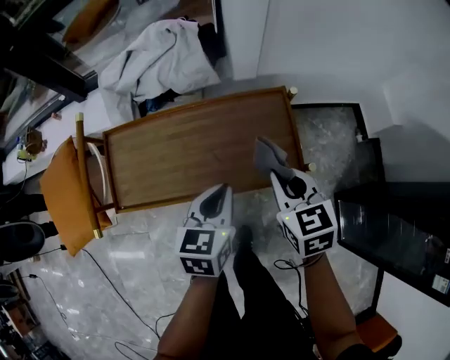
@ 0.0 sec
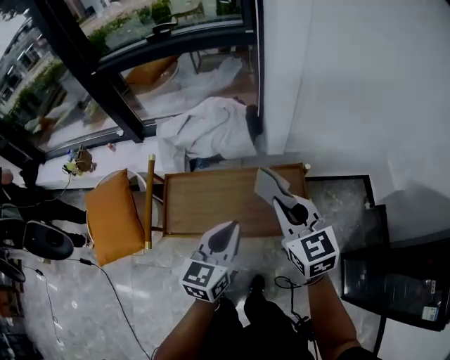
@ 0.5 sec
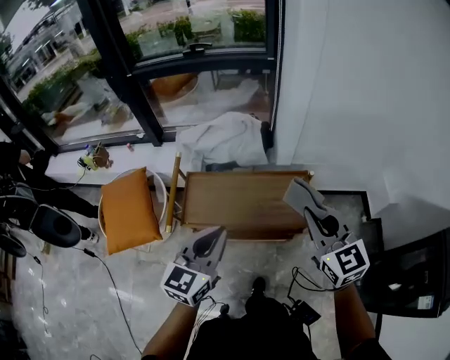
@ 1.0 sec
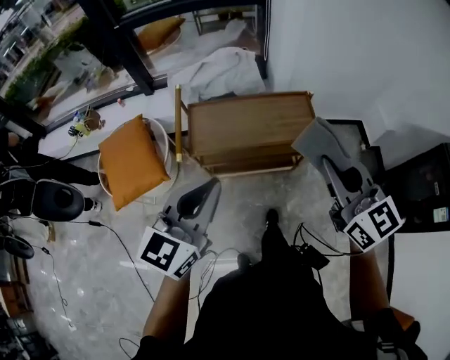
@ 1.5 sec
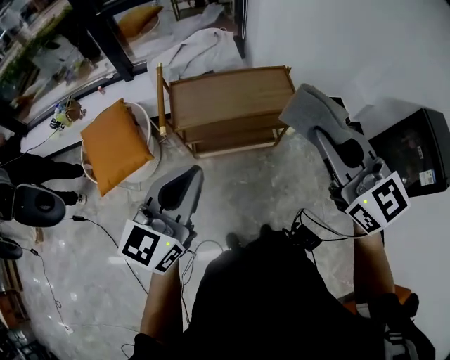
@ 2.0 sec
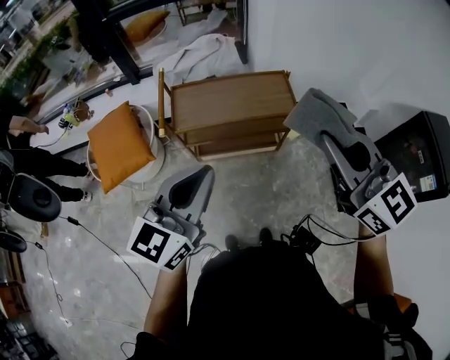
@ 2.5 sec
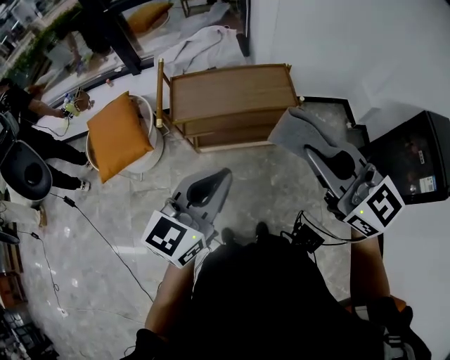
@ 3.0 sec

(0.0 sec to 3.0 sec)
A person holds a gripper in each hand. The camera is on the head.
0.0 sec - 1.5 sec: The left gripper is displaced upward, backward and to the left by some 50 cm, and changes its angle by roughly 30 degrees. The right gripper is displaced upward and backward by roughly 40 cm, and angles its fingers upward, by approximately 30 degrees.
1.5 sec - 3.0 sec: The right gripper heads backward, covering roughly 15 cm; the left gripper goes some 15 cm backward and to the right.

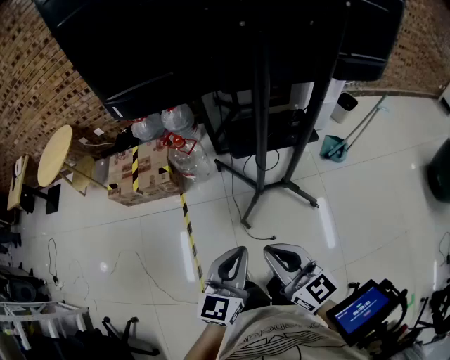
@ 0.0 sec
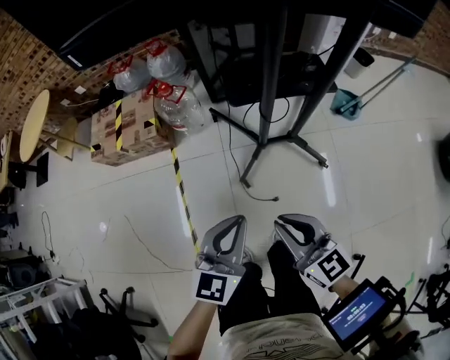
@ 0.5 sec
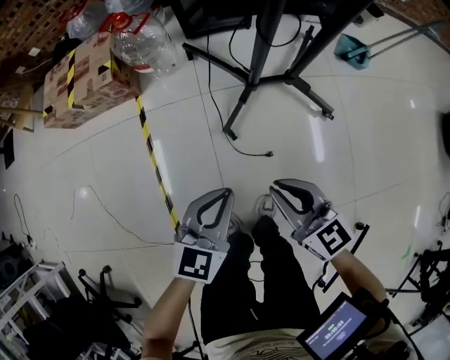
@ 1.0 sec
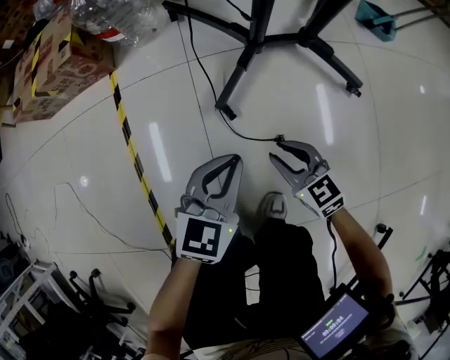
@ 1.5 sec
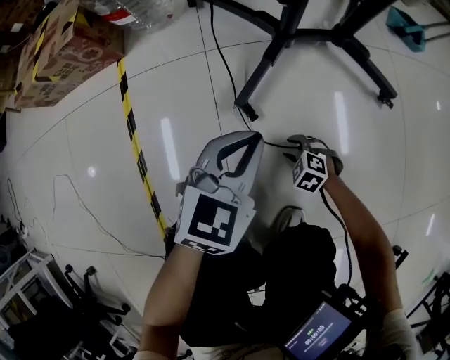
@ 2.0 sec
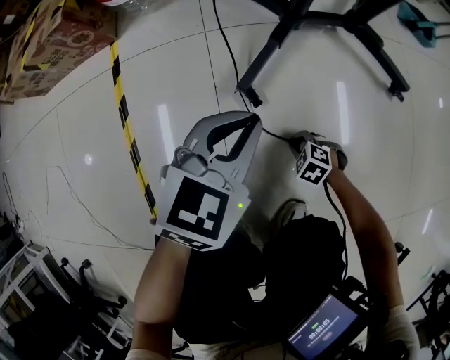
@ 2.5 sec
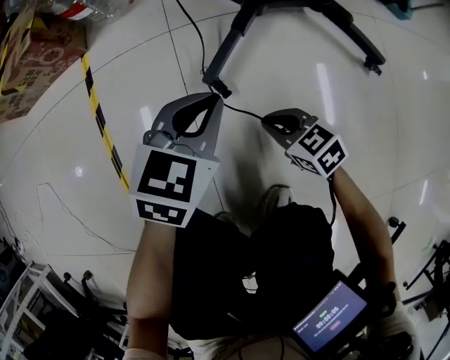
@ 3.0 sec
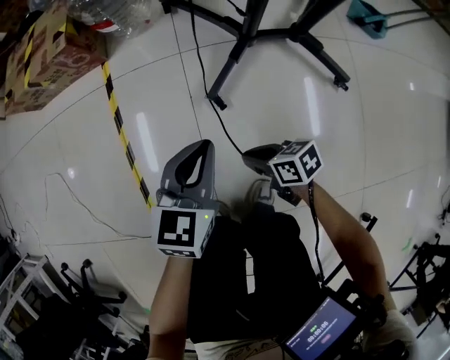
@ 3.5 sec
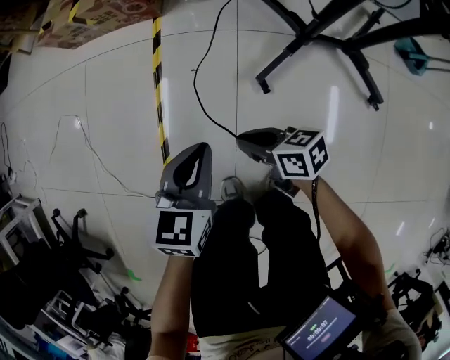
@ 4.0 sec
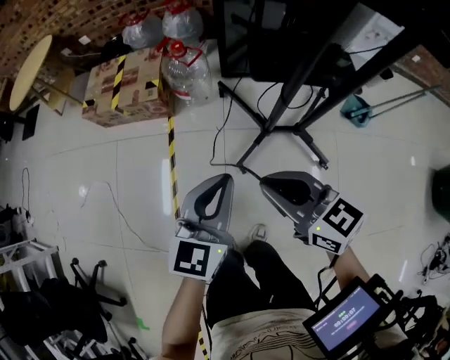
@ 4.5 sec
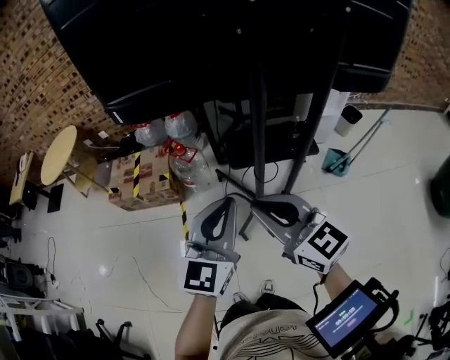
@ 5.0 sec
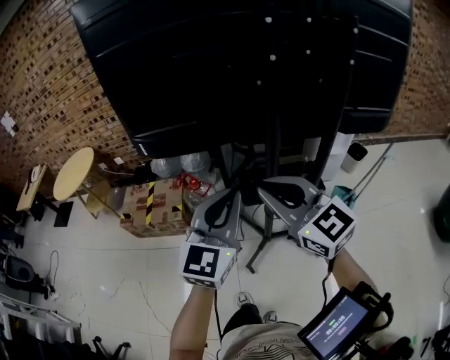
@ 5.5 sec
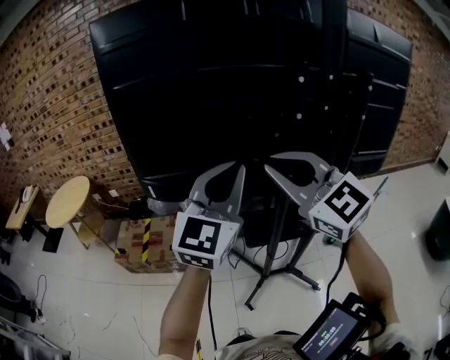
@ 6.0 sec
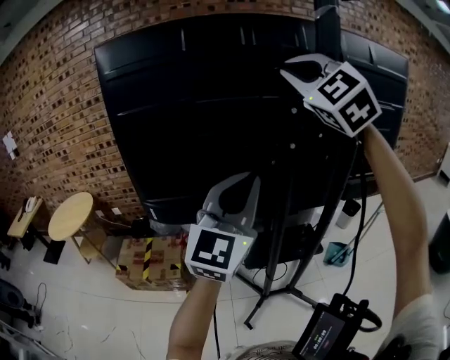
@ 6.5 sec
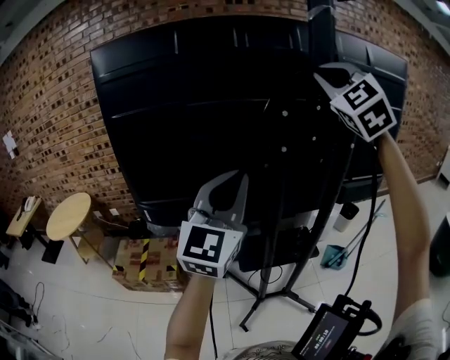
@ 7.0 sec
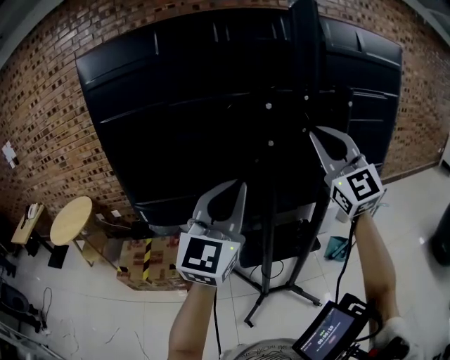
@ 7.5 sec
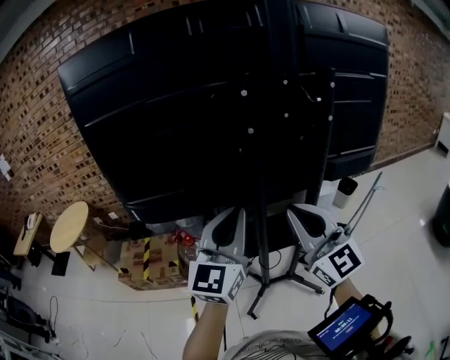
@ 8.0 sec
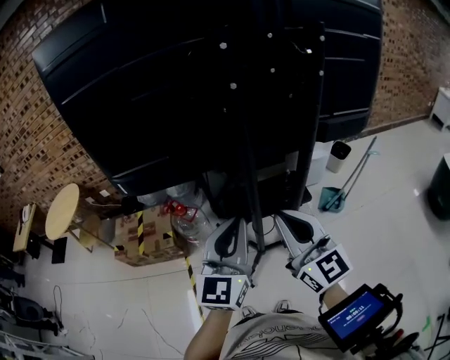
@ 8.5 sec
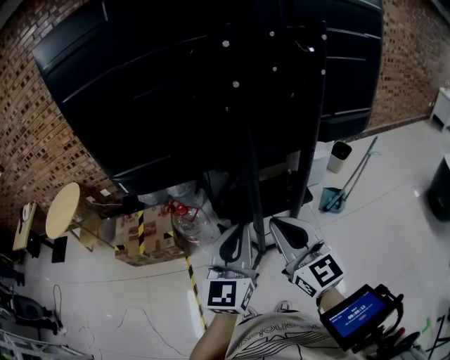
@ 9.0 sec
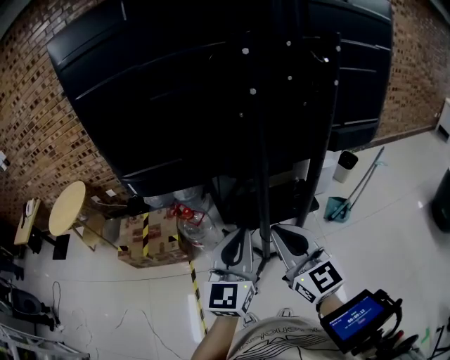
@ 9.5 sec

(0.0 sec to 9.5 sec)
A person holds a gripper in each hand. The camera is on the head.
0.0 sec - 2.0 sec: The two grippers go some 80 cm downward. The right gripper angles its fingers downward, by approximately 60 degrees, and opens its fingers. The left gripper rotates some 30 degrees.
2.0 sec - 4.0 sec: The right gripper travels upward by approximately 35 cm, angles its fingers upward, by roughly 40 degrees, and closes. The left gripper ends up about 25 cm from where it was, and changes its angle by some 40 degrees.
4.0 sec - 5.5 sec: Both grippers travel together upward, about 80 cm. The left gripper tilts its fingers some 40 degrees upward. Meanwhile the right gripper turns by approximately 80 degrees.
5.5 sec - 7.5 sec: The right gripper is displaced upward, forward and to the right by some 30 cm, and rotates some 40 degrees. The left gripper shifts about 15 cm upward and forward.
7.5 sec - 9.5 sec: The left gripper is displaced downward by about 20 cm, and turns by roughly 20 degrees. Meanwhile the right gripper shifts approximately 30 cm downward and backward, and turns by about 30 degrees.

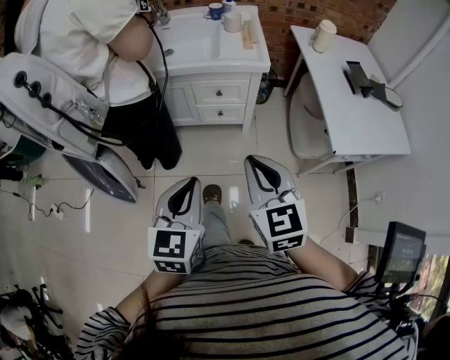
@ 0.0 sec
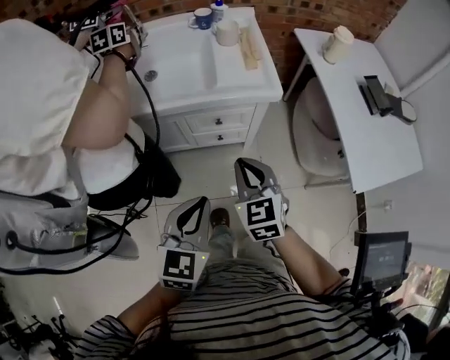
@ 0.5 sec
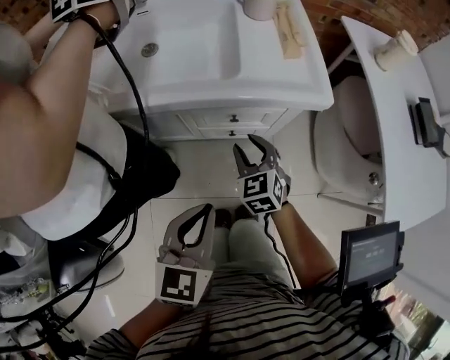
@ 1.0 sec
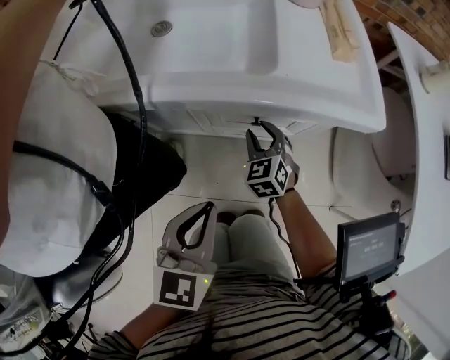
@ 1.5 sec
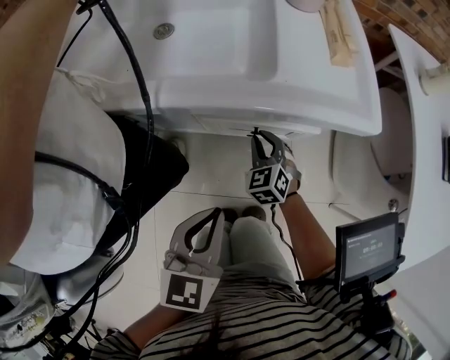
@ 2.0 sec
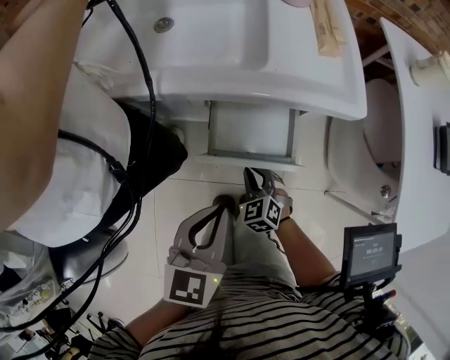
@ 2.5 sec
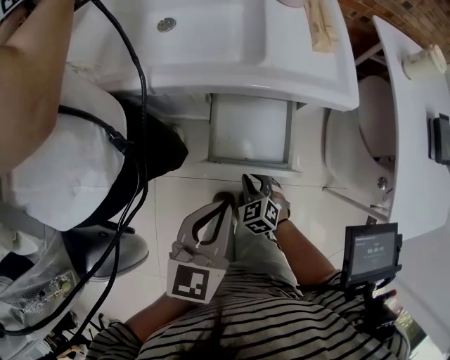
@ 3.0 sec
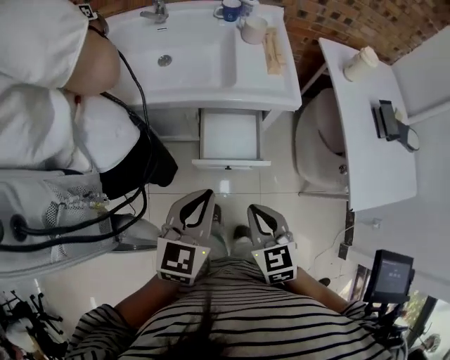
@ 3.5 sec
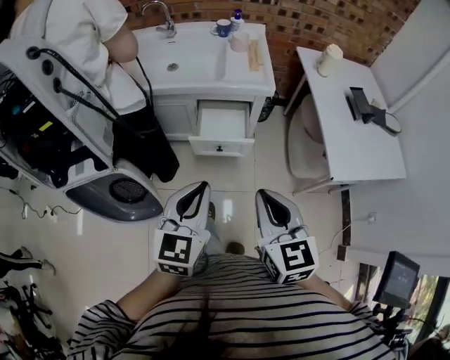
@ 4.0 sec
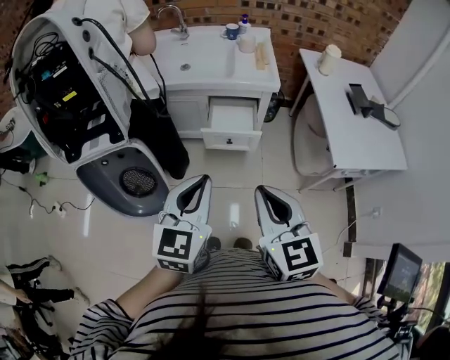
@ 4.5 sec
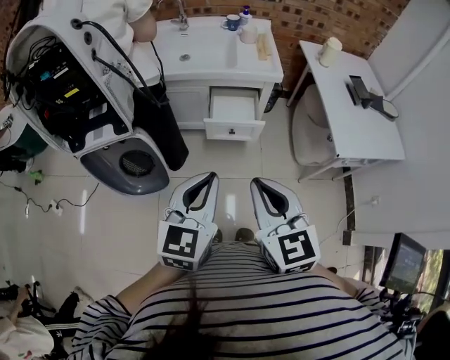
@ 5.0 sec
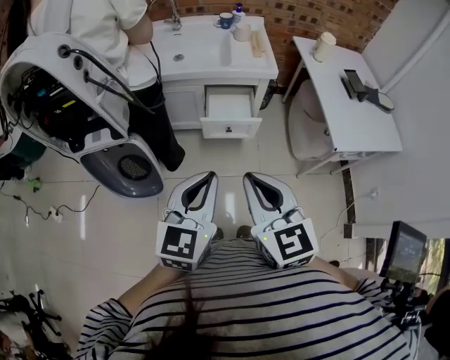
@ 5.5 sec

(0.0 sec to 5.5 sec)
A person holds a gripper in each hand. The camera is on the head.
0.0 sec - 2.0 sec: The right gripper travels downward and forward by roughly 60 cm, rotates approximately 30 degrees, and opens, then closes again. Meanwhile the left gripper moves forward and downward, about 35 cm.
2.0 sec - 3.5 sec: The right gripper goes some 40 cm backward and upward, and swivels about 20 degrees, while the left gripper moves upward and backward, roughly 20 cm.
3.5 sec - 5.5 sec: The grippers both shift backward and upward by roughly 30 cm. The right gripper swivels roughly 20 degrees.

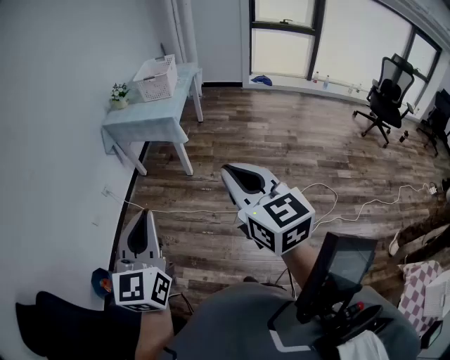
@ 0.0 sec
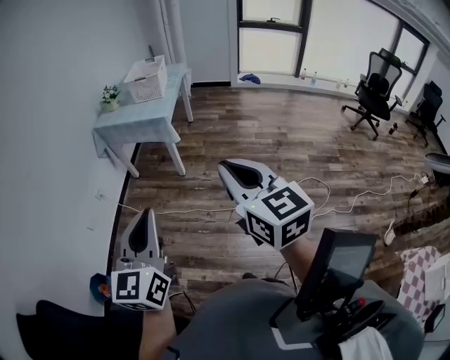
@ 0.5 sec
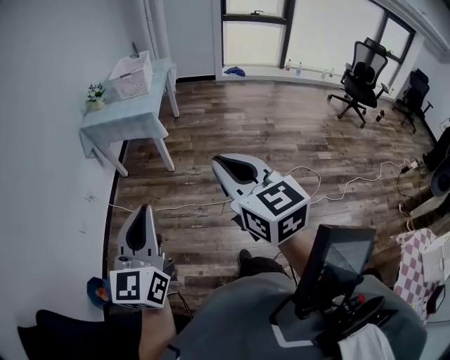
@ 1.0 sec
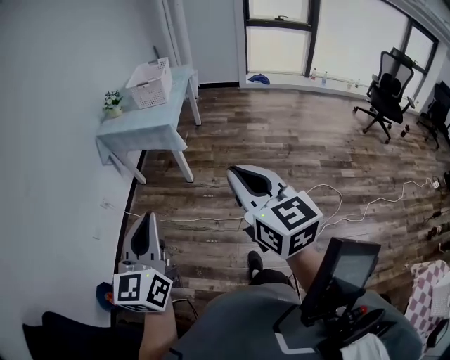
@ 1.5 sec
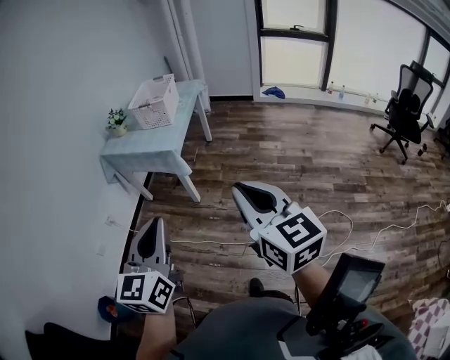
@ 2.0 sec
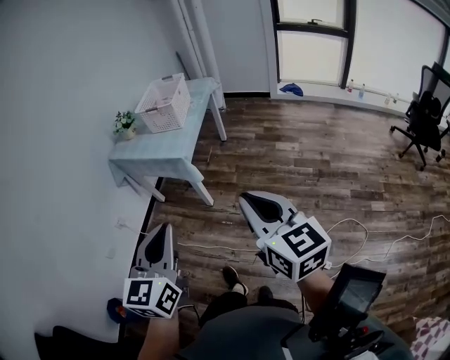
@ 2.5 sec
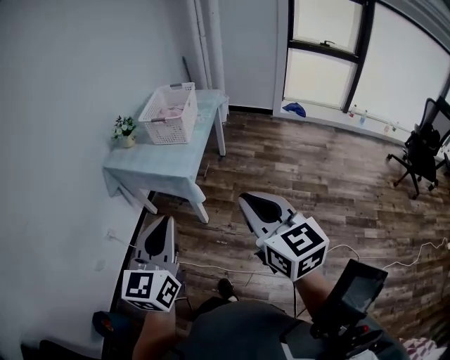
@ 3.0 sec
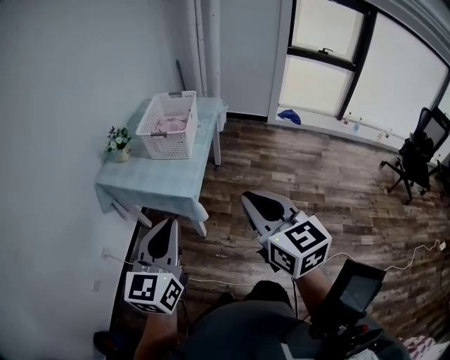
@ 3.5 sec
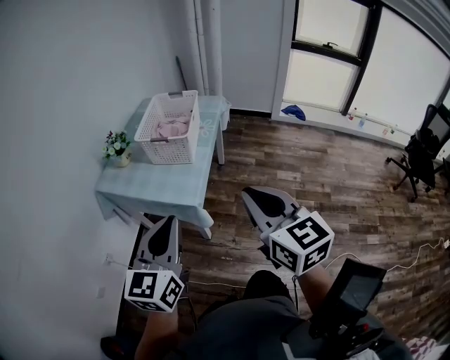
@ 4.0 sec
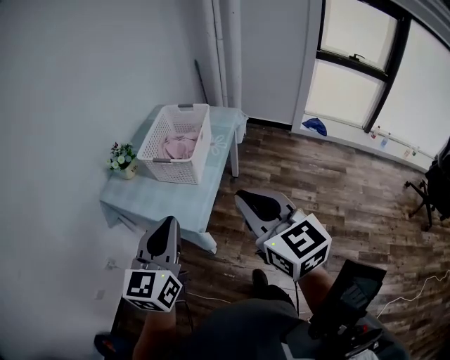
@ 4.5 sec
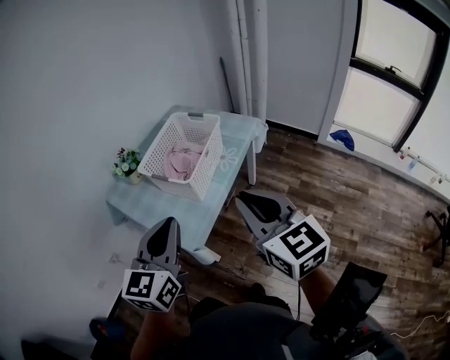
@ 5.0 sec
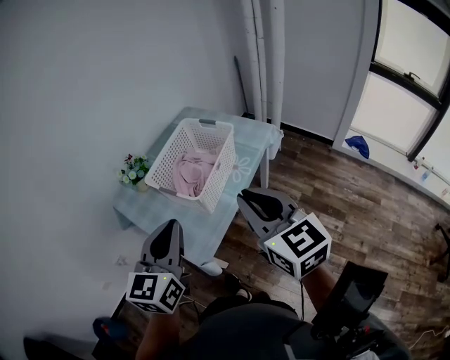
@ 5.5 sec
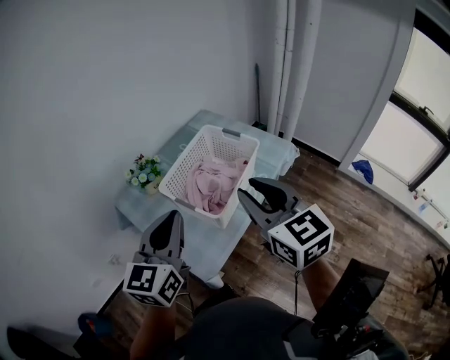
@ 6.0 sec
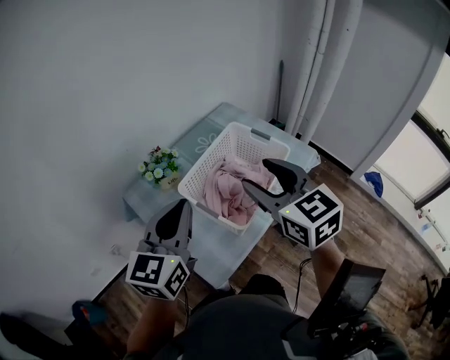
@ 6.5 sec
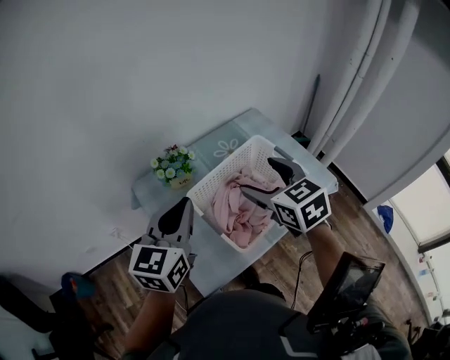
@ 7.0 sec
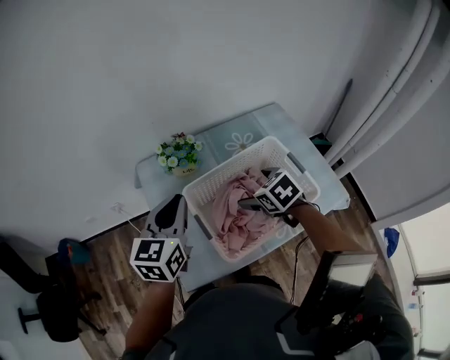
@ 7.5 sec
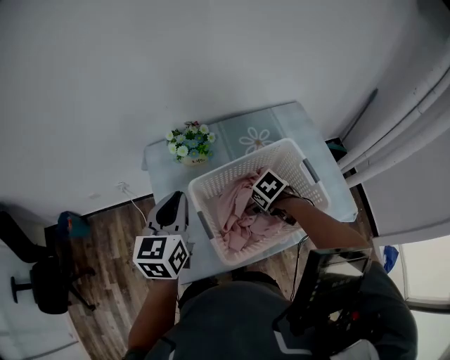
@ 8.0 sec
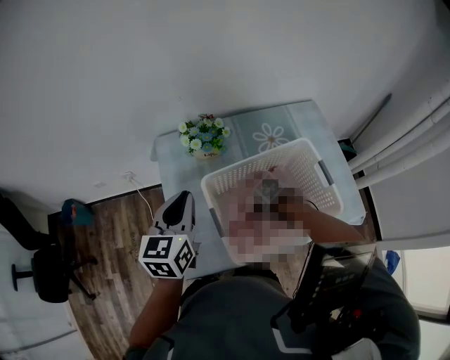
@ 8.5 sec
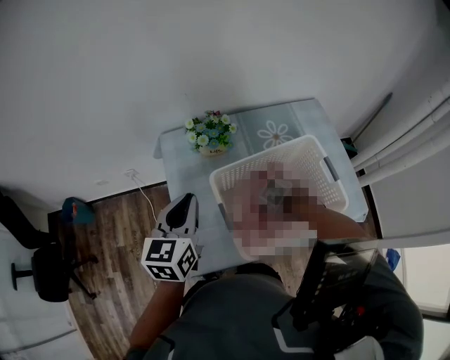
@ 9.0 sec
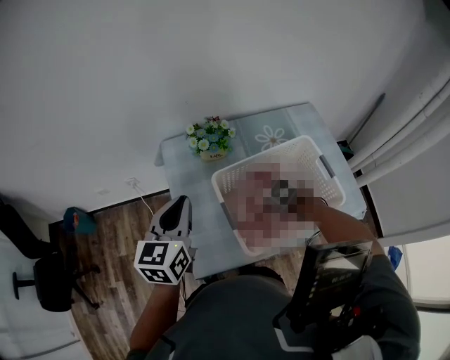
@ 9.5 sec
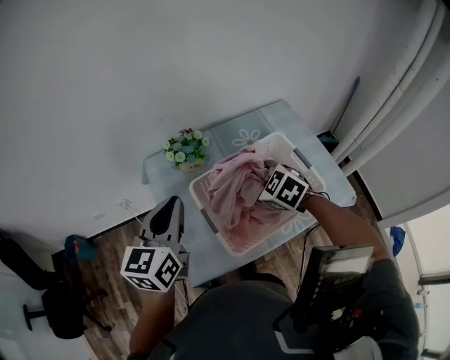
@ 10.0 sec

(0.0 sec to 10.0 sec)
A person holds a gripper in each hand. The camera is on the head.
0.0 sec - 2.0 sec: Both grippers move forward and to the right, some 20 cm.
2.0 sec - 4.0 sec: The two grippers travel together, forward, approximately 40 cm.
4.0 sec - 6.0 sec: The right gripper ends up some 40 cm from where it was, and swivels some 30 degrees. The left gripper shifts by about 35 cm, and turns by about 20 degrees.
6.0 sec - 8.0 sec: The left gripper changes place by about 20 cm, and swivels roughly 40 degrees. Meanwhile the right gripper shifts roughly 35 cm downward, points its fingers about 60 degrees further downward, and opens.
8.0 sec - 10.0 sec: The left gripper shifts roughly 5 cm upward, while the right gripper travels upward by roughly 15 cm, rotates approximately 30 degrees, and closes its fingers.
